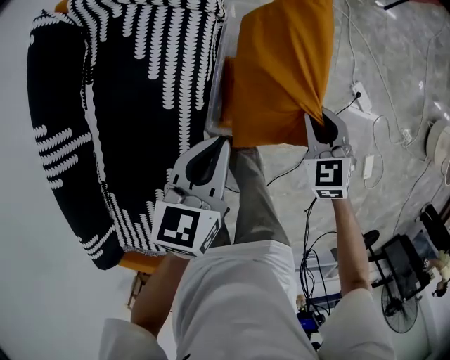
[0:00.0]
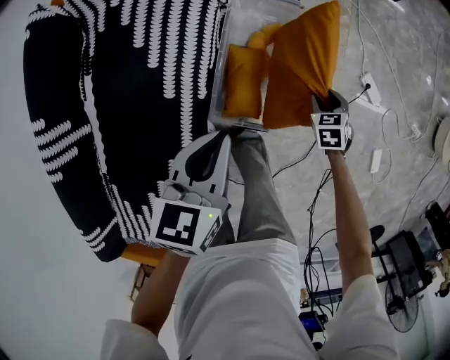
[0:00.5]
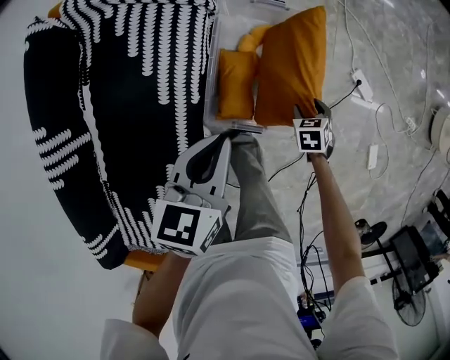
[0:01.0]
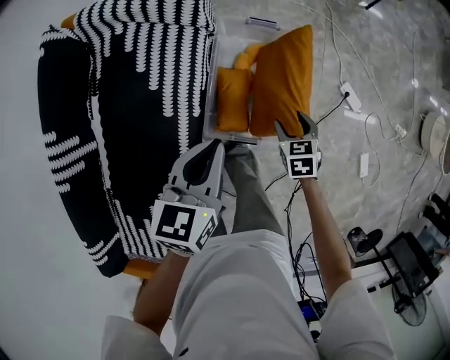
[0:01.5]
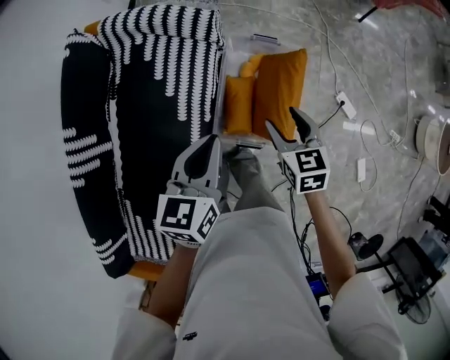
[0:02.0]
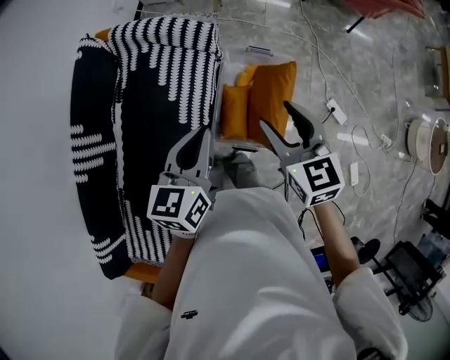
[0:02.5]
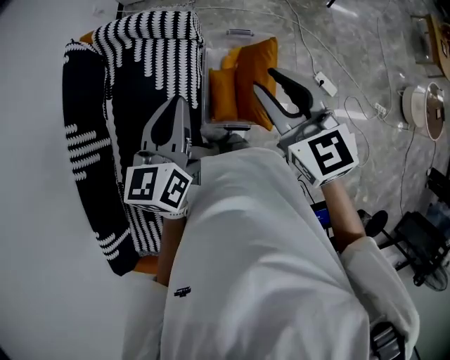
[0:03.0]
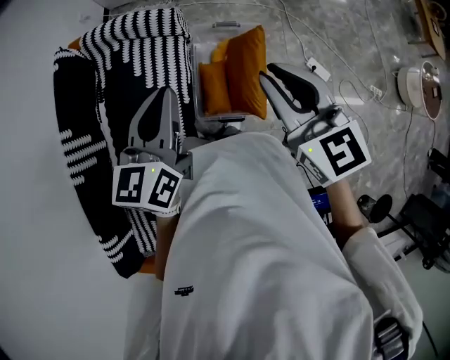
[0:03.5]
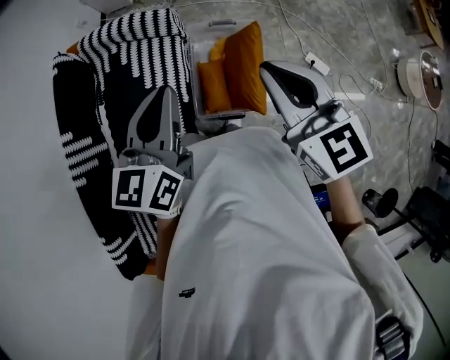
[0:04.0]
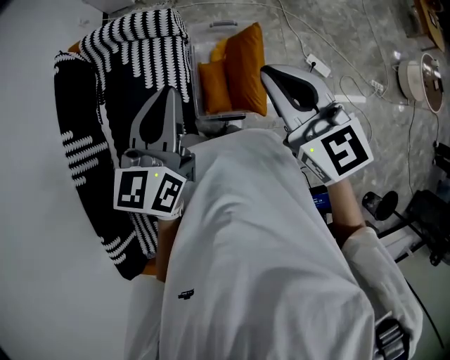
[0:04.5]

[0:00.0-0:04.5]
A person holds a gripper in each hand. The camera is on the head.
0:00.0 to 0:02.0: The grippers both shift upward by about 15 cm. The right gripper changes its angle by about 20 degrees, and opens up.
0:02.0 to 0:04.5: The left gripper travels upward by approximately 15 cm, while the right gripper is displaced upward by approximately 30 cm, turns by approximately 30 degrees, and closes its fingers.

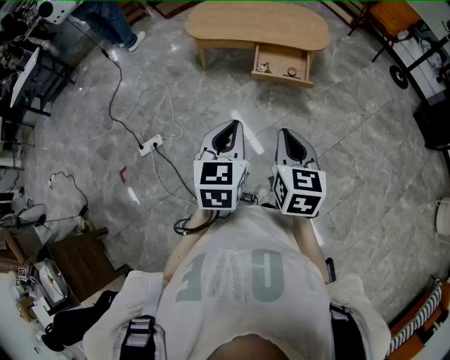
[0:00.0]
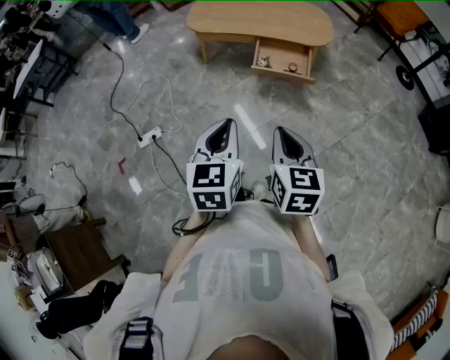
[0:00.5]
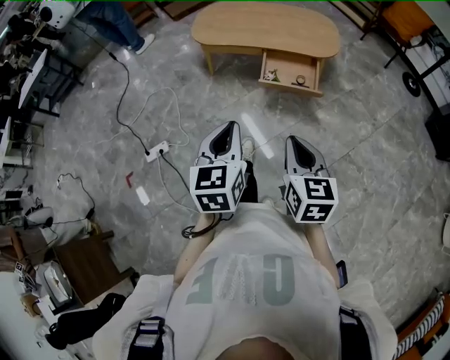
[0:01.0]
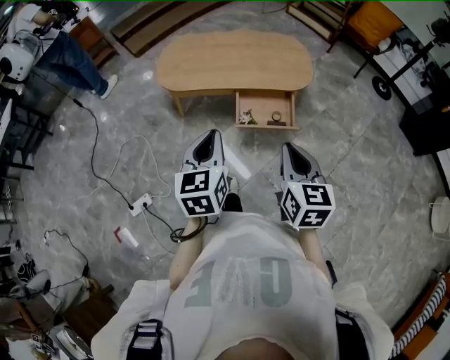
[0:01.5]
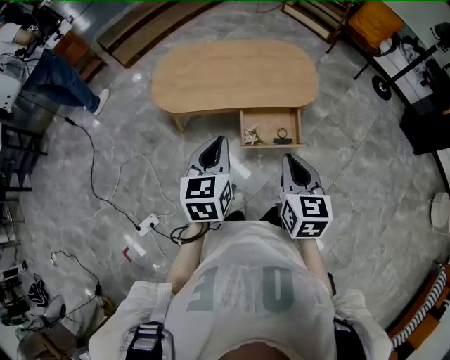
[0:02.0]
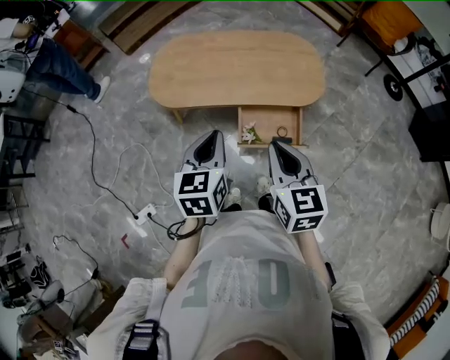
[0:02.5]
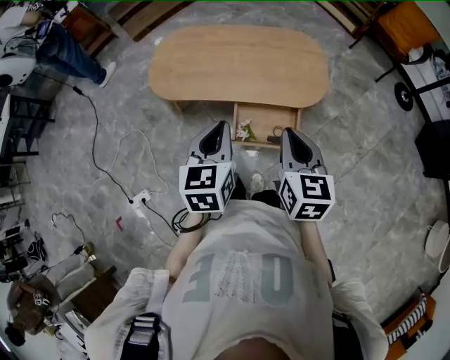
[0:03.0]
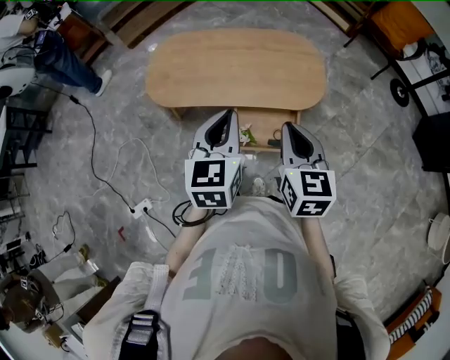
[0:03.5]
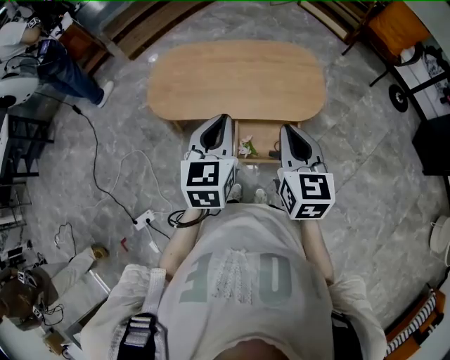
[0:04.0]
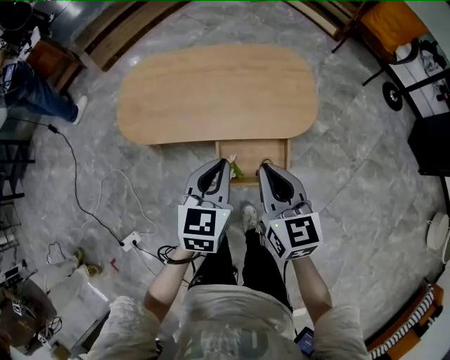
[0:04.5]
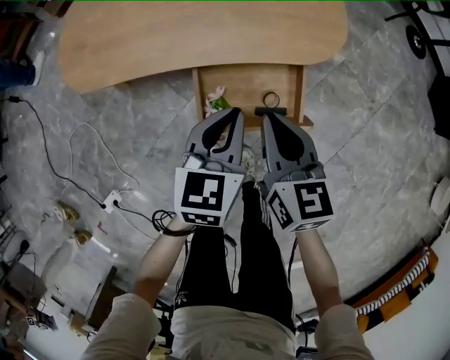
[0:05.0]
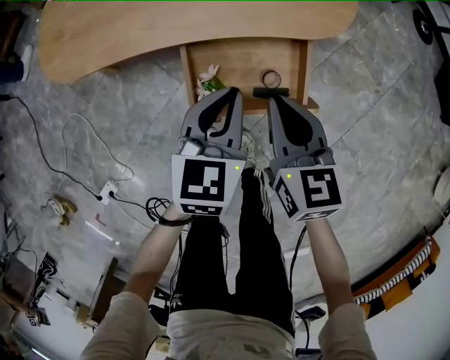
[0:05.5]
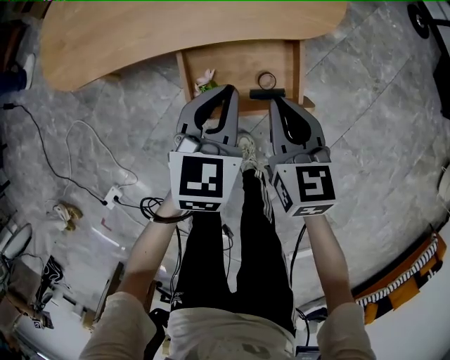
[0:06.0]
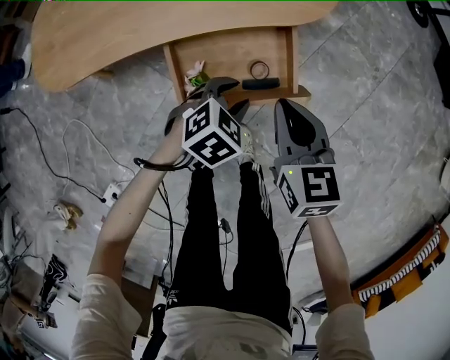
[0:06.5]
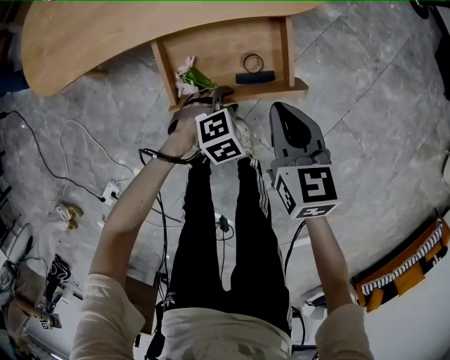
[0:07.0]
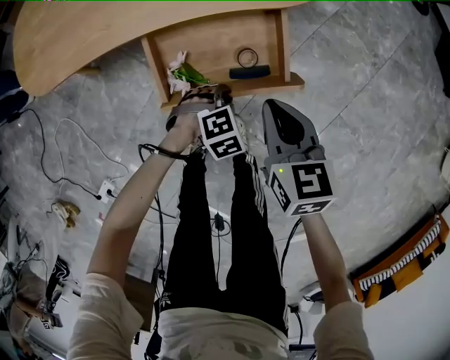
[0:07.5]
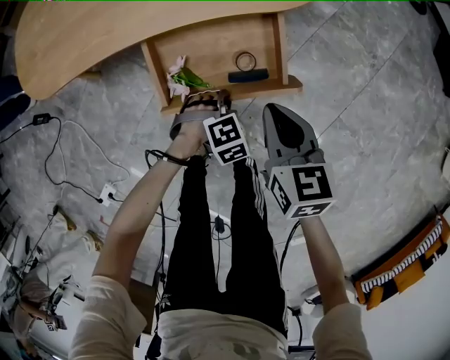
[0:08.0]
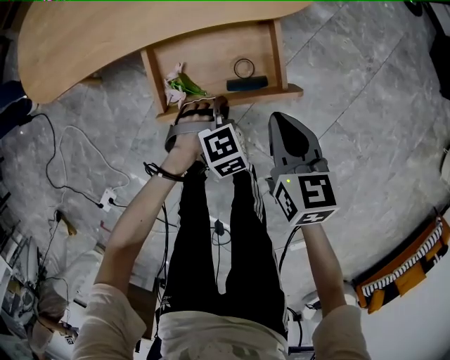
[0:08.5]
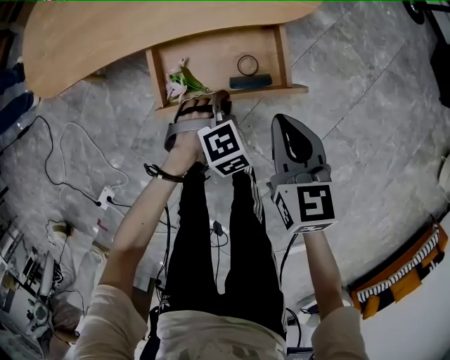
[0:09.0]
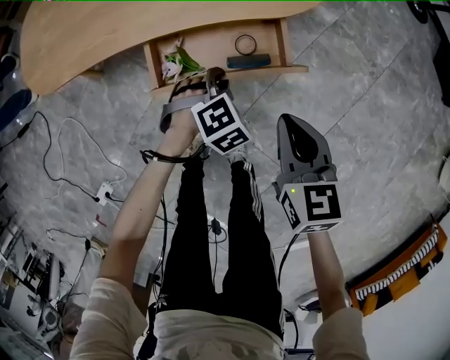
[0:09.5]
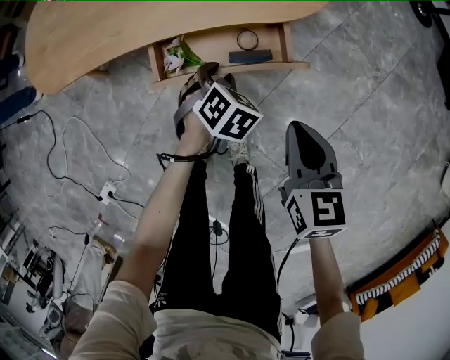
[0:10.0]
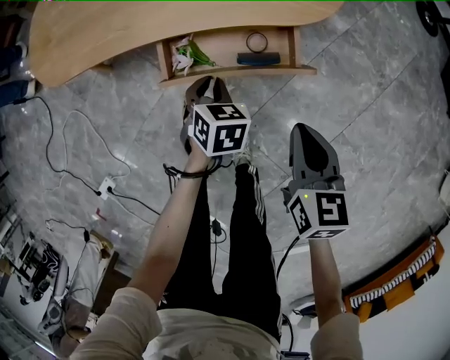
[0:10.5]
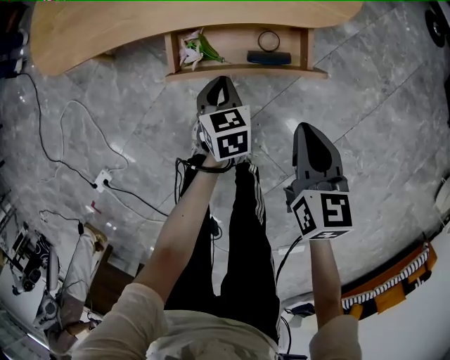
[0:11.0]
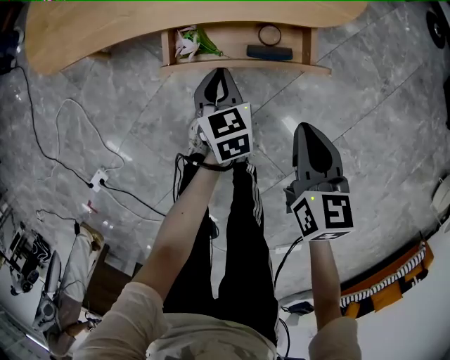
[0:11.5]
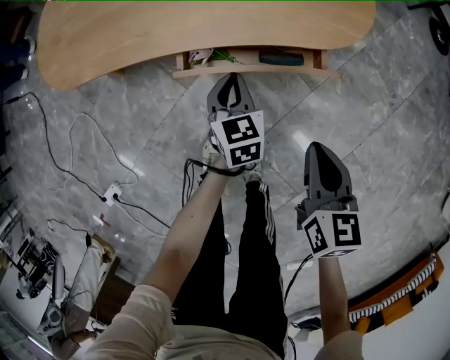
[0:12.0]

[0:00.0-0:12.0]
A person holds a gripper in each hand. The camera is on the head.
0:00.0 to 0:02.0: Both grippers travel together forward, roughly 40 cm.
0:02.0 to 0:04.0: The left gripper travels forward and to the right by roughly 20 cm. The right gripper goes about 20 cm forward.
0:04.0 to 0:06.0: The two grippers go about 35 cm downward. The left gripper changes its angle by about 20 degrees.
0:06.0 to 0:08.0: The left gripper travels downward by about 25 cm, and points its fingers approximately 40 degrees further downward. Meanwhile the right gripper changes place by about 10 cm.
0:08.0 to 0:10.0: The right gripper changes place by some 5 cm. The left gripper shifts by roughly 10 cm, and turns by approximately 40 degrees.
0:10.0 to 0:12.0: The left gripper travels to the left and forward by roughly 5 cm, changes its angle by some 50 degrees, and closes up.

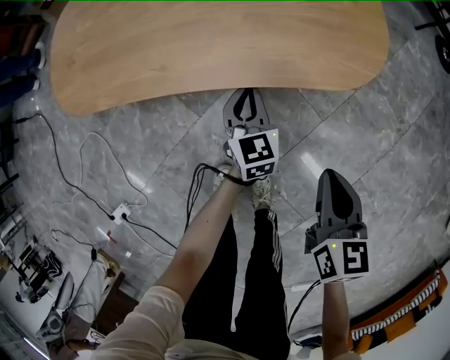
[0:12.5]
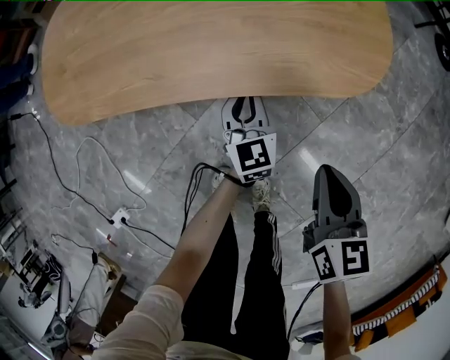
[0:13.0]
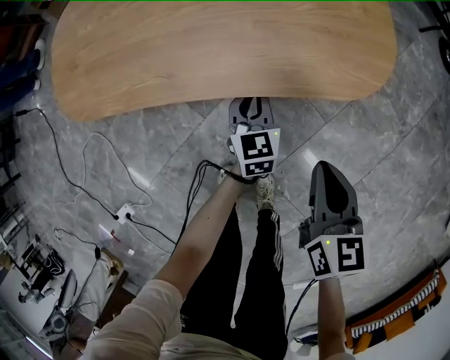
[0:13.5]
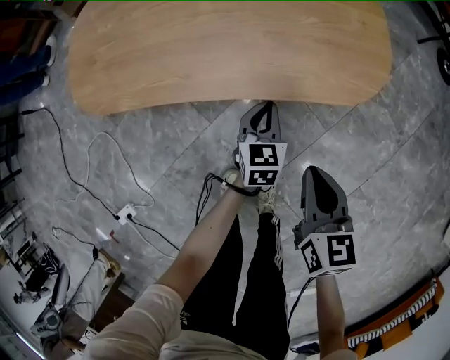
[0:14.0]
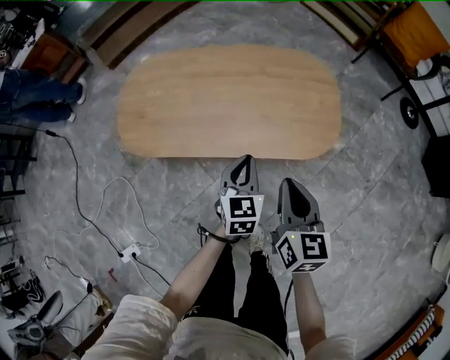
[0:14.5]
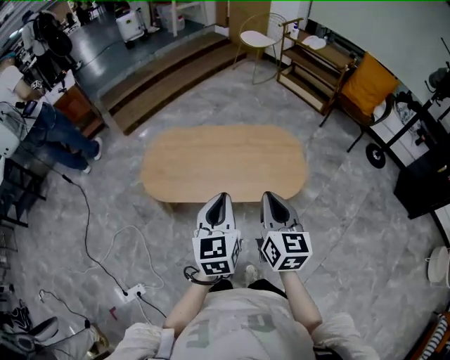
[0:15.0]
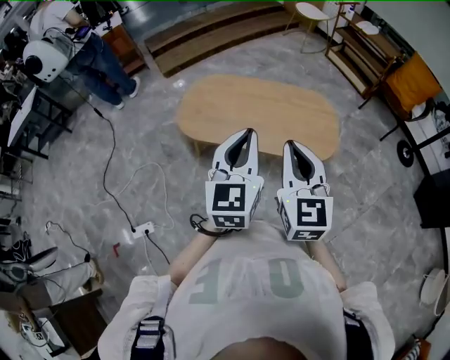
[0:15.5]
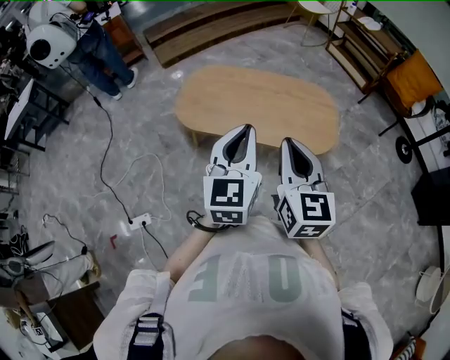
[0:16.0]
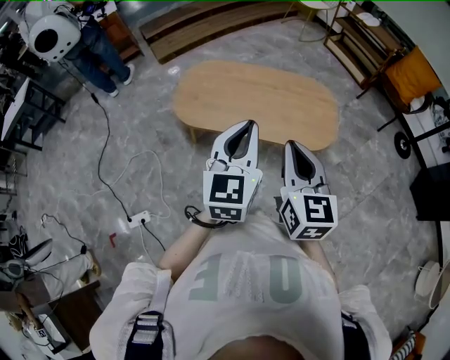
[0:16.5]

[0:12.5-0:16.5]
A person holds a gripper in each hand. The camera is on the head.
0:12.5 to 0:14.5: The right gripper goes about 25 cm upward and to the left. Meanwhile the left gripper travels upward by about 25 cm.
0:14.5 to 0:16.5: The grippers both shift upward by about 35 cm. The left gripper swivels approximately 20 degrees.

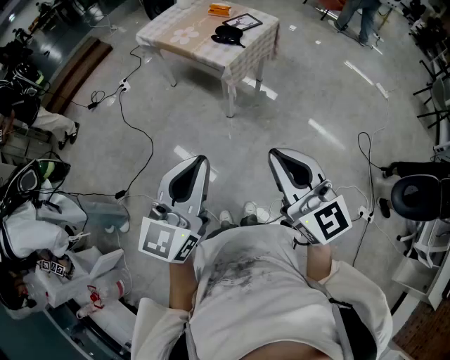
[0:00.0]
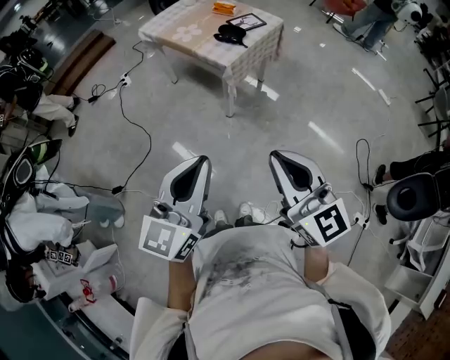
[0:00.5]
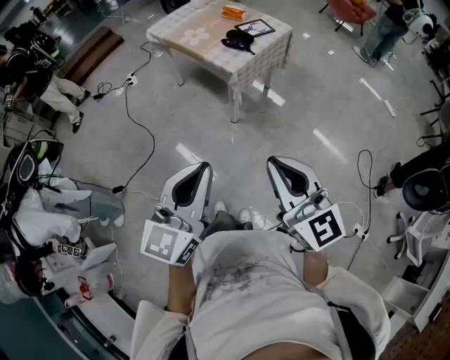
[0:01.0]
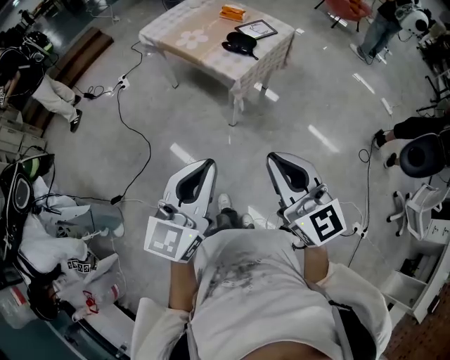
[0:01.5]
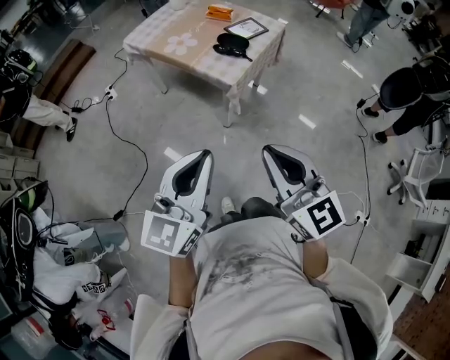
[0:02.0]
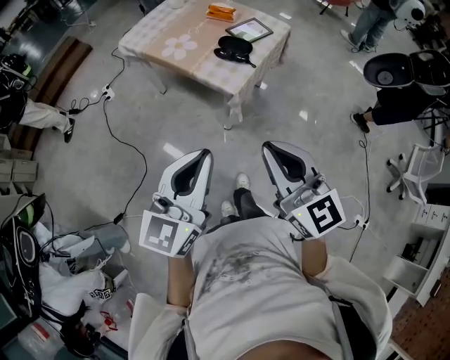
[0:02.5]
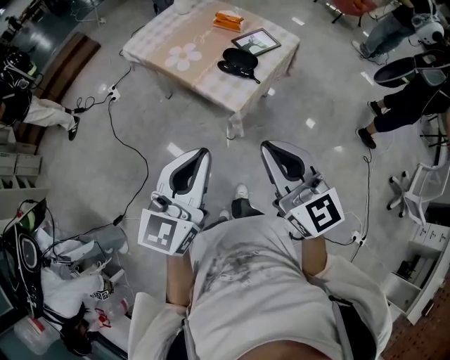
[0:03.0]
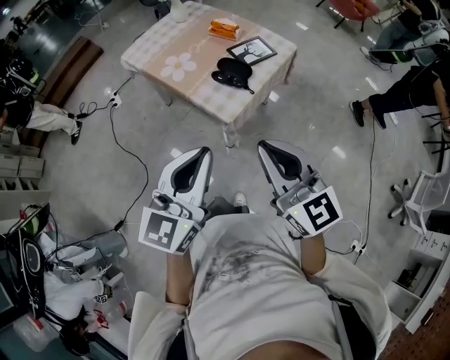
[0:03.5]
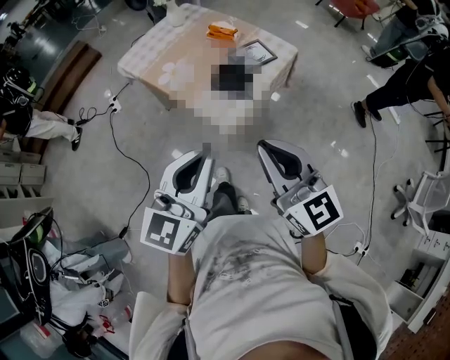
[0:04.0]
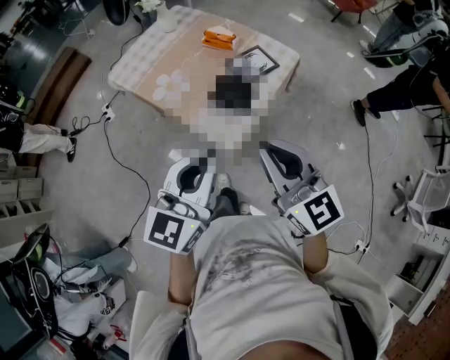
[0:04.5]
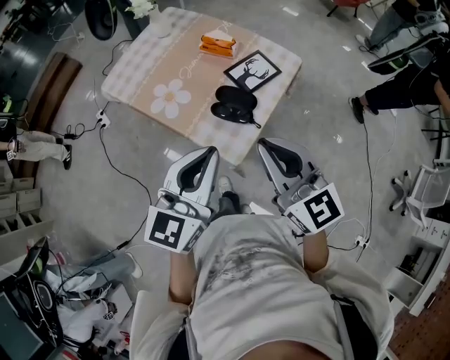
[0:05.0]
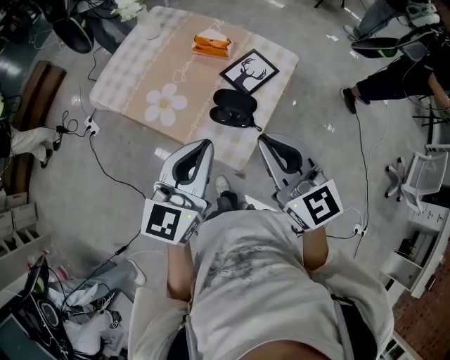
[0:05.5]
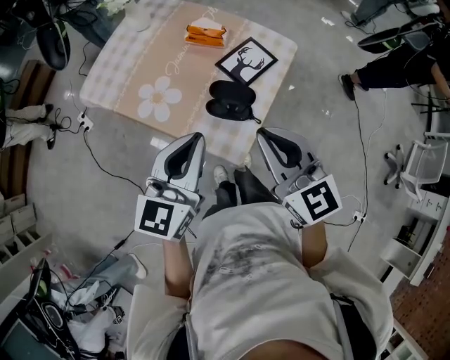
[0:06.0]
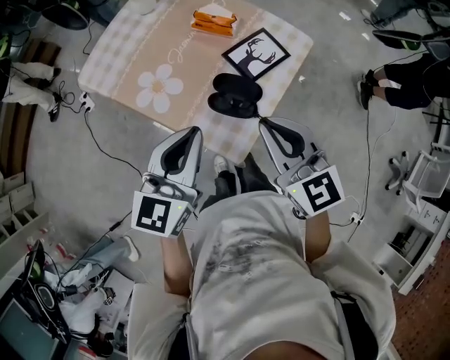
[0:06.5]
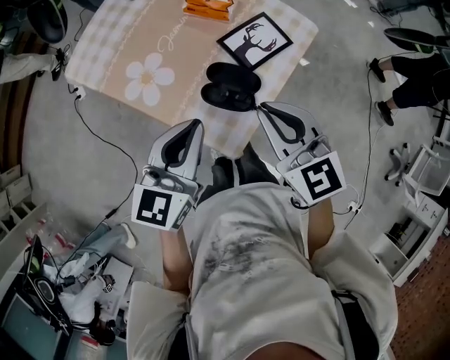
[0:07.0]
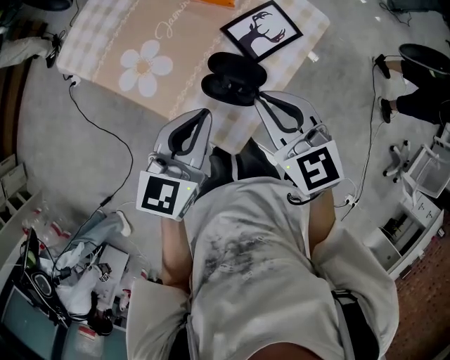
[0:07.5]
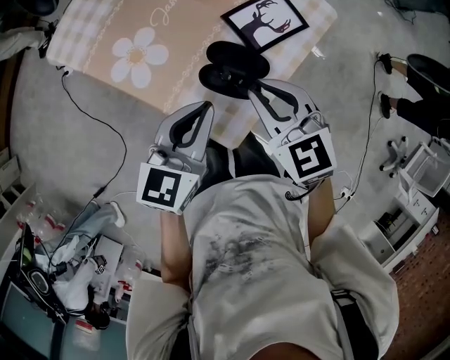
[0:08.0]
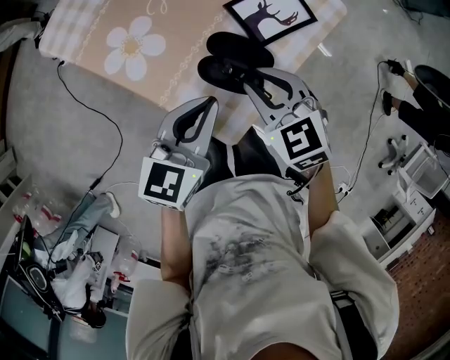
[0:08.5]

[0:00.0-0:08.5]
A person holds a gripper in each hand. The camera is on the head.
0:00.0 to 0:02.0: The grippers both shift forward by about 20 cm.
0:02.0 to 0:04.0: The grippers both shift forward by some 25 cm.
0:04.0 to 0:06.5: The grippers both shift forward by some 30 cm.
0:06.5 to 0:08.5: Both grippers move downward, roughly 15 cm. The right gripper changes its angle by some 30 degrees.
